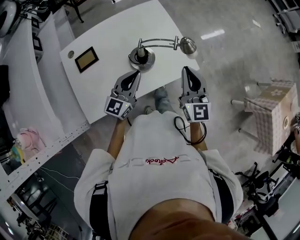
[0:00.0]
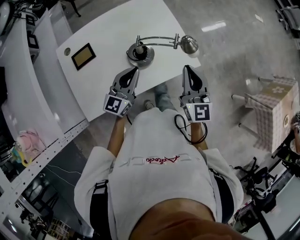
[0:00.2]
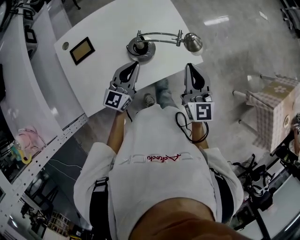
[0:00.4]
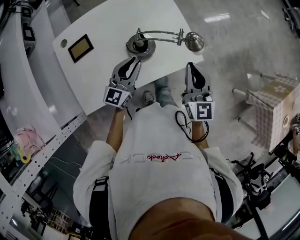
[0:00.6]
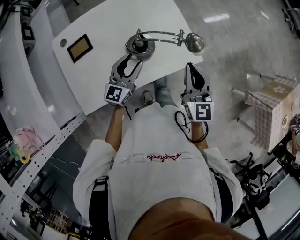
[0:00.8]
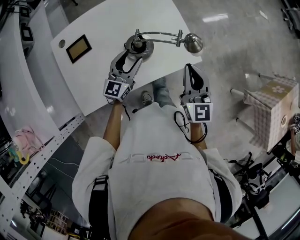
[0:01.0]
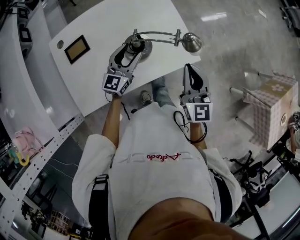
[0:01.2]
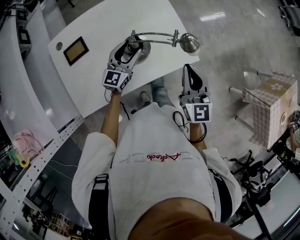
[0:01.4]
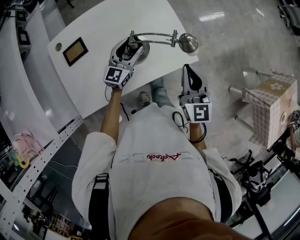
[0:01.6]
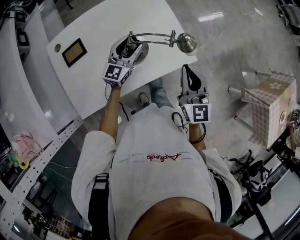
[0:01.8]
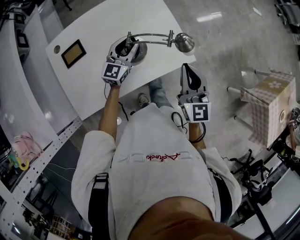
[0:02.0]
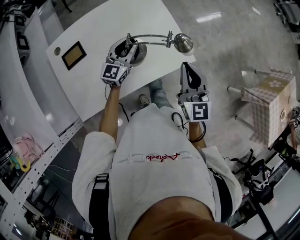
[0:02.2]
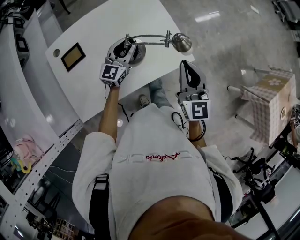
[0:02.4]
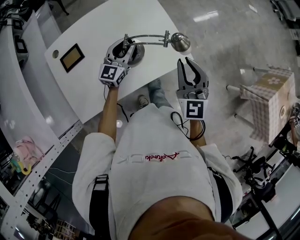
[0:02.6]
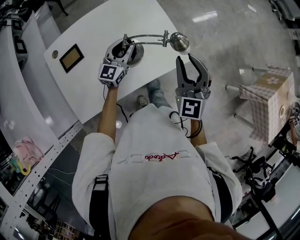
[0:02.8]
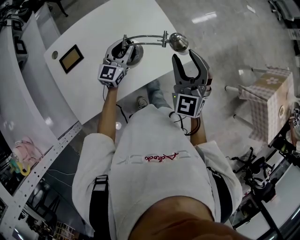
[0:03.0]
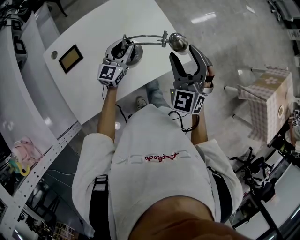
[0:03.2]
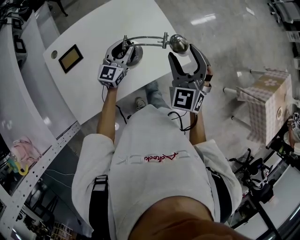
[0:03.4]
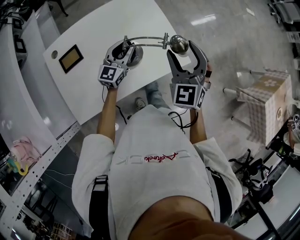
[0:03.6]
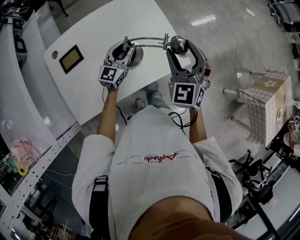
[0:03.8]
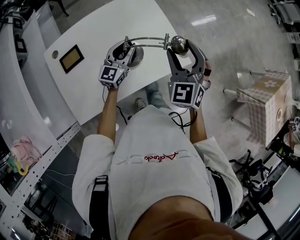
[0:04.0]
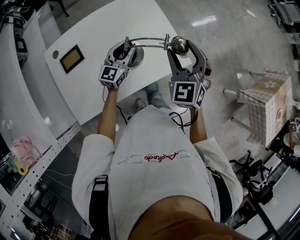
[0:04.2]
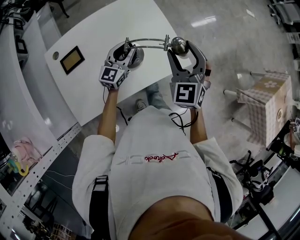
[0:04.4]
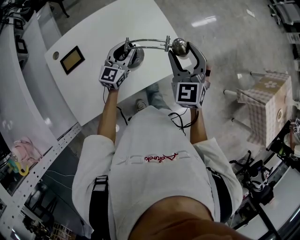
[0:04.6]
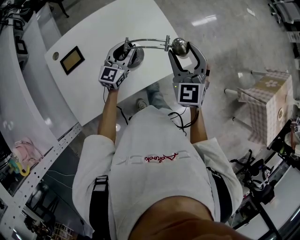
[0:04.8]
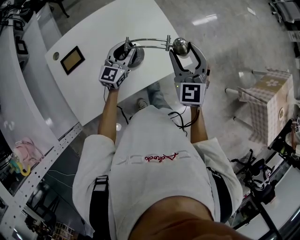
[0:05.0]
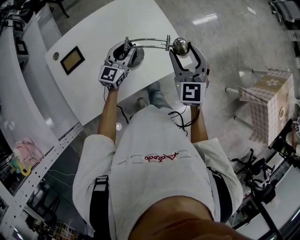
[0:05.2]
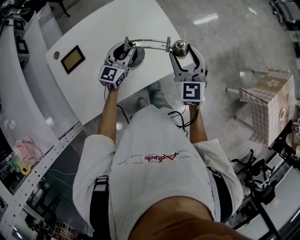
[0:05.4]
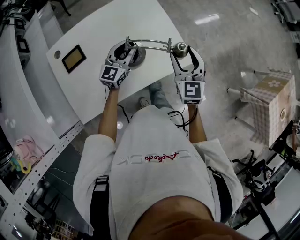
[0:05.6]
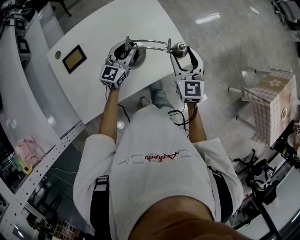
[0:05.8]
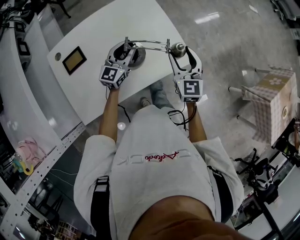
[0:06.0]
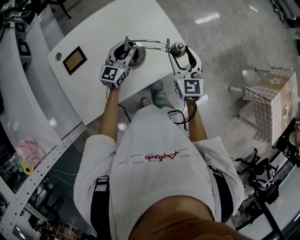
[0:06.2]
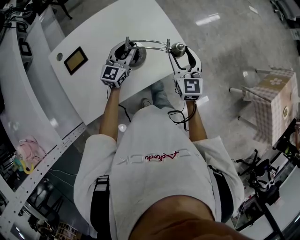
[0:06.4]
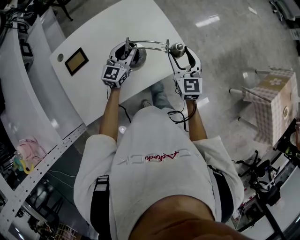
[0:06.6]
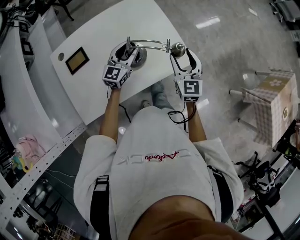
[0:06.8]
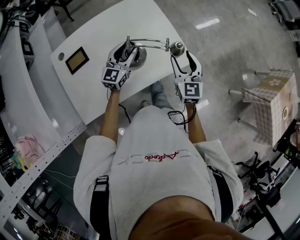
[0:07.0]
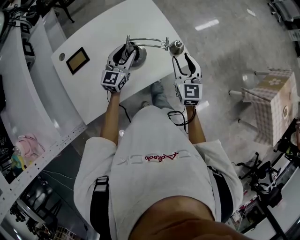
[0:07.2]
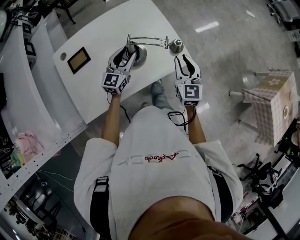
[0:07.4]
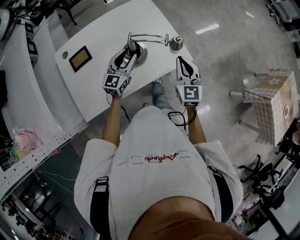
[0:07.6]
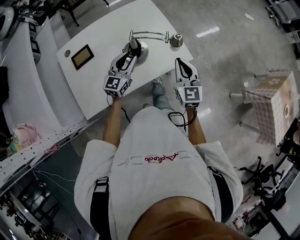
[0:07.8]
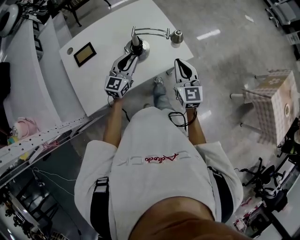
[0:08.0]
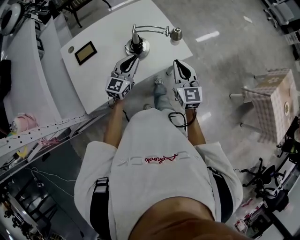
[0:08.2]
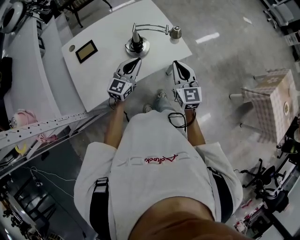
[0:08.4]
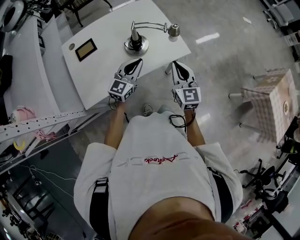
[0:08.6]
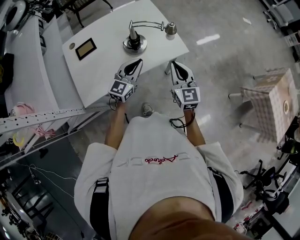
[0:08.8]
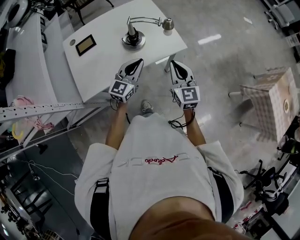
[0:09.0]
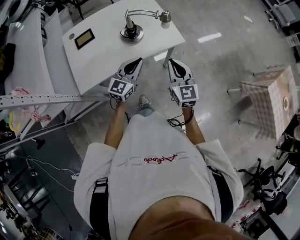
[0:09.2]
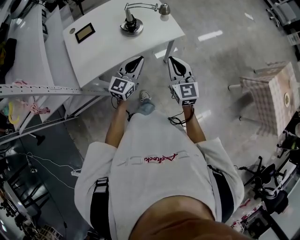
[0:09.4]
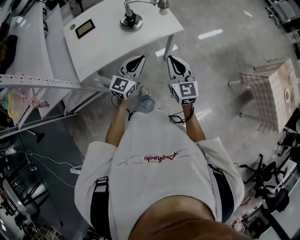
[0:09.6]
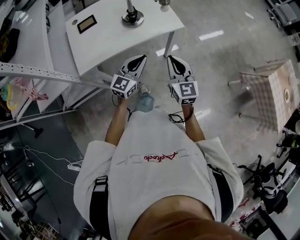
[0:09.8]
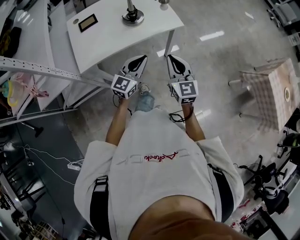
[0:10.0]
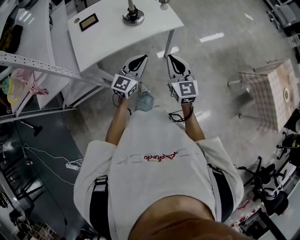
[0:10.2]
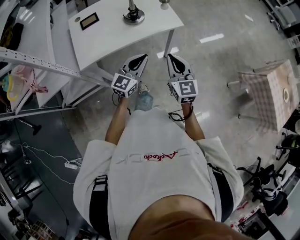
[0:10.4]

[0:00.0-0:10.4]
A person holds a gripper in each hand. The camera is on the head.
0:00.0 to 0:01.4: The left gripper moves forward and downward, some 10 cm, and opens its fingers.
0:01.4 to 0:03.0: The left gripper closes its fingers. The right gripper shifts by some 5 cm, changes its angle by some 30 degrees, and opens its fingers.
0:03.0 to 0:04.4: The grippers make only small movements.
0:04.4 to 0:06.0: The right gripper goes about 10 cm downward, and swivels approximately 30 degrees.
0:06.0 to 0:07.4: The right gripper closes up.
0:07.4 to 0:09.0: The left gripper travels backward and to the right by about 20 cm, and closes up. The right gripper moves backward, approximately 15 cm, and closes up.
0:09.0 to 0:10.4: Both grippers travel together backward, about 15 cm.

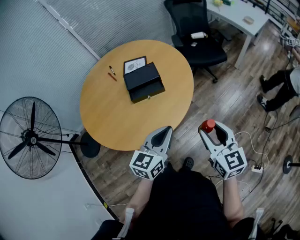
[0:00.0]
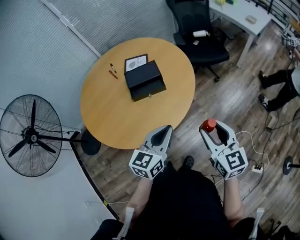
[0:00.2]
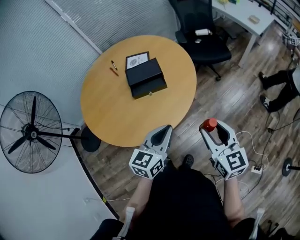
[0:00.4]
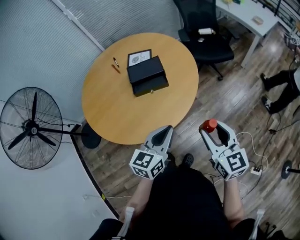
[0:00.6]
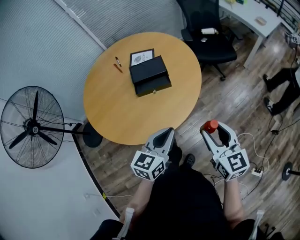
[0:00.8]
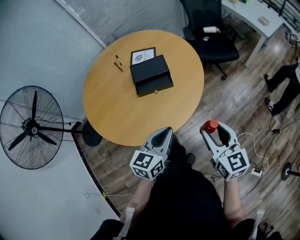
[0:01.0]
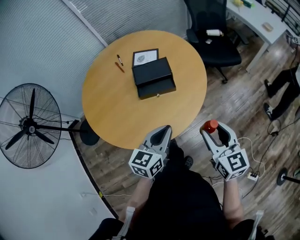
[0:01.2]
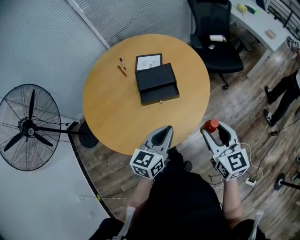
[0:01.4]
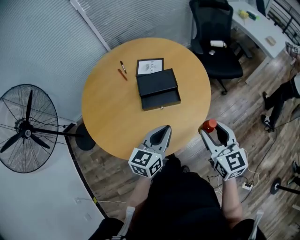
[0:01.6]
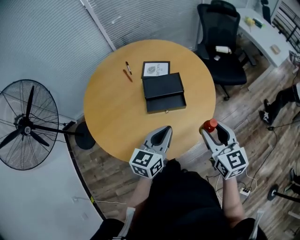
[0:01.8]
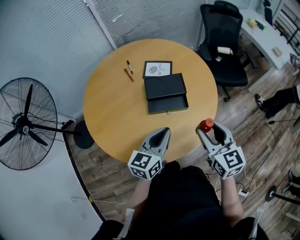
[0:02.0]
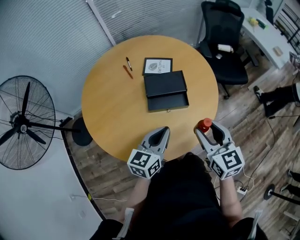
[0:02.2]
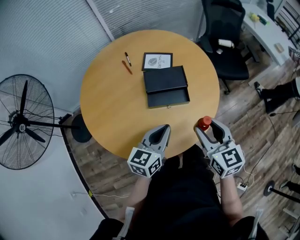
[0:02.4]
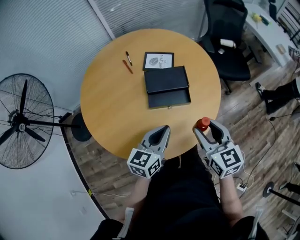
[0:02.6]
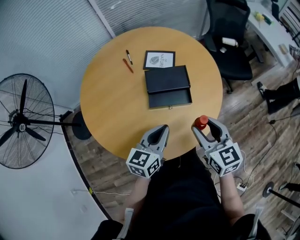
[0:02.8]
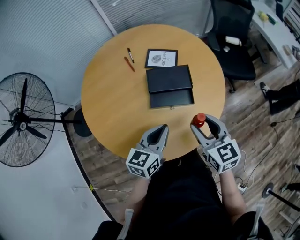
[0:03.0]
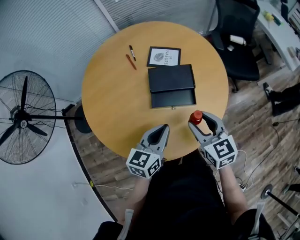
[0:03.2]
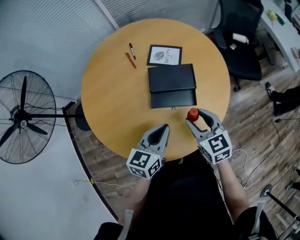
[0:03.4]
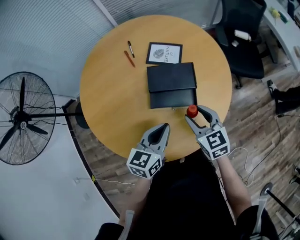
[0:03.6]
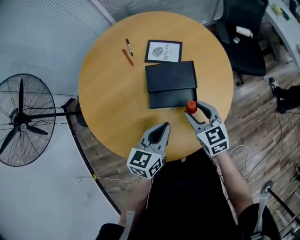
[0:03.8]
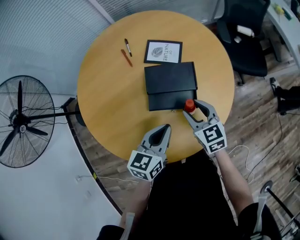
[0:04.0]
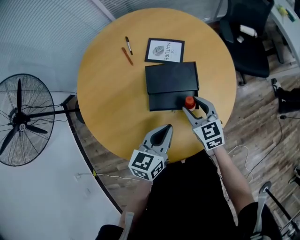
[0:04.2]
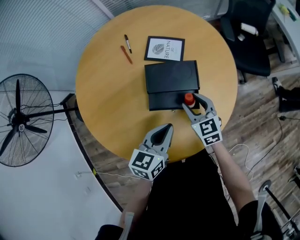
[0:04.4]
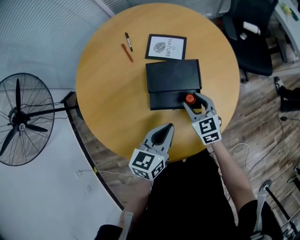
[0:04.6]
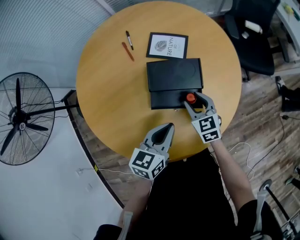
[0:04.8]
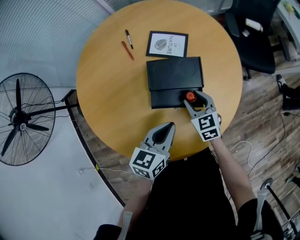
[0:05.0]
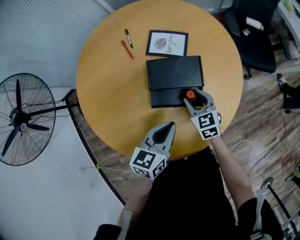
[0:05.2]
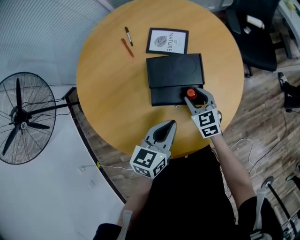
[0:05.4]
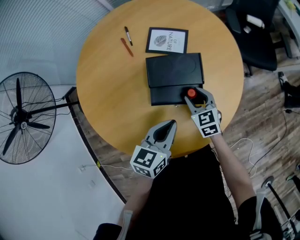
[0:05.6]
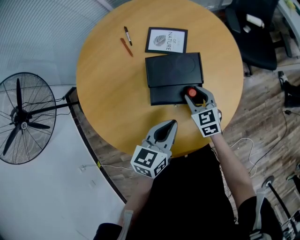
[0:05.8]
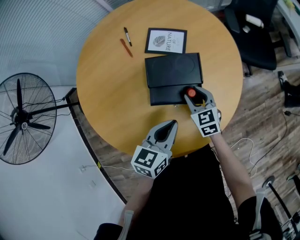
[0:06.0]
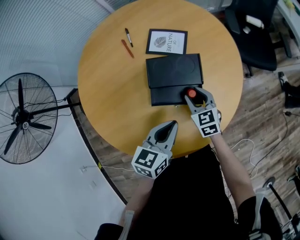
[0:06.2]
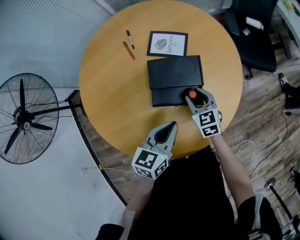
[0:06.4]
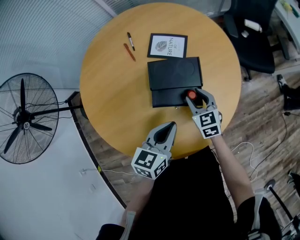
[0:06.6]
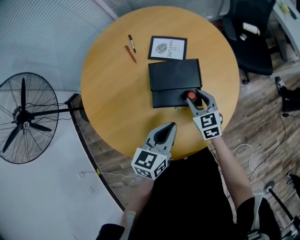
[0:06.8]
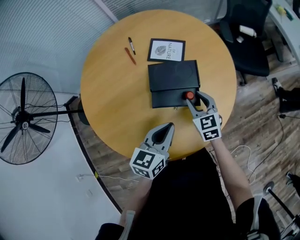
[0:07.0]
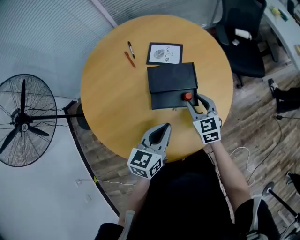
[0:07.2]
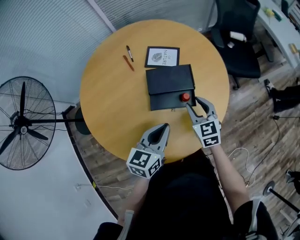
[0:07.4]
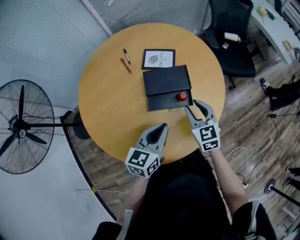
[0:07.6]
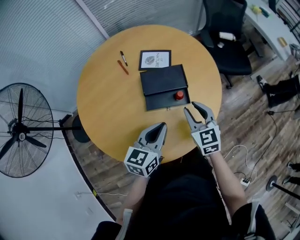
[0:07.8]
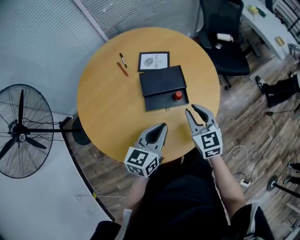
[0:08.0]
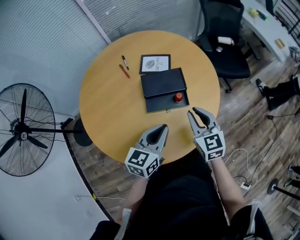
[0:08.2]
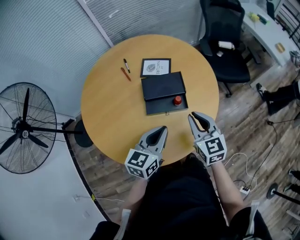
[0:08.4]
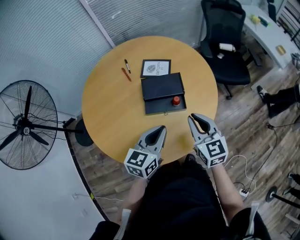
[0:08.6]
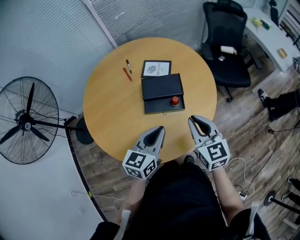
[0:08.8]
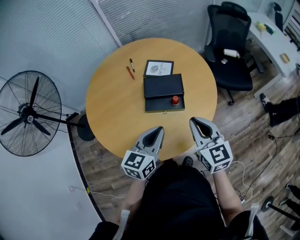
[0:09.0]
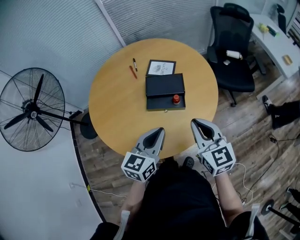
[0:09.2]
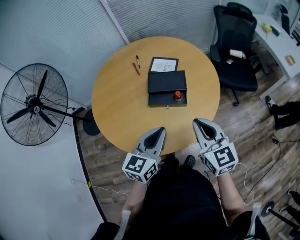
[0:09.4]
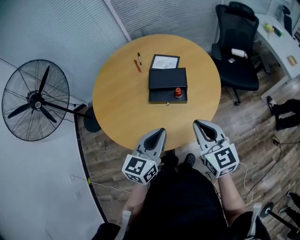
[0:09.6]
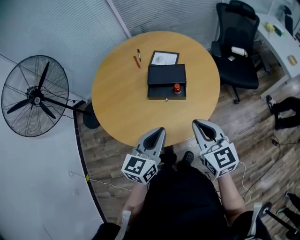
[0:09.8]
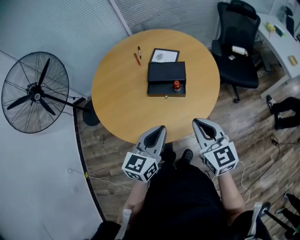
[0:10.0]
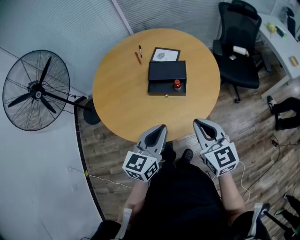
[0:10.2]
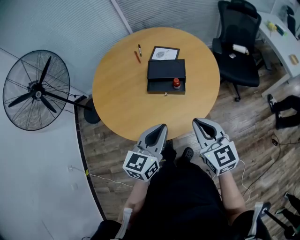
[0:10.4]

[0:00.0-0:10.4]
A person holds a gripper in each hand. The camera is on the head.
0:00.0 to 0:01.4: The grippers both shift forward and to the left by roughly 10 cm.
0:01.4 to 0:03.0: The two grippers go roughly 15 cm forward and to the left.
0:03.0 to 0:04.4: The right gripper is displaced downward and forward by roughly 20 cm. The left gripper is displaced forward and downward by roughly 10 cm.
0:04.4 to 0:06.0: There are only small adjustments of the grippers.
0:06.0 to 0:07.4: The left gripper moves approximately 5 cm. The right gripper is displaced upward by approximately 10 cm.
0:07.4 to 0:09.0: The left gripper shifts about 10 cm upward and backward. The right gripper is displaced upward and backward by roughly 20 cm, and closes its fingers.
0:09.0 to 0:10.4: Both grippers move backward, some 10 cm.

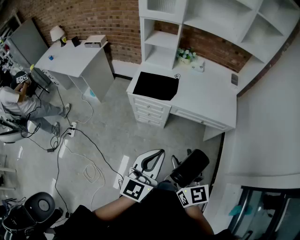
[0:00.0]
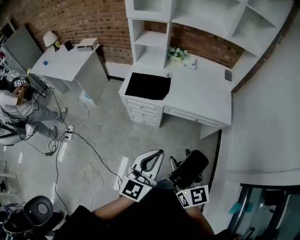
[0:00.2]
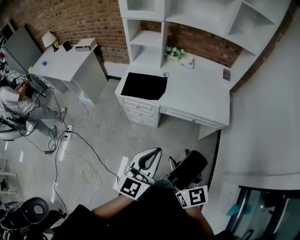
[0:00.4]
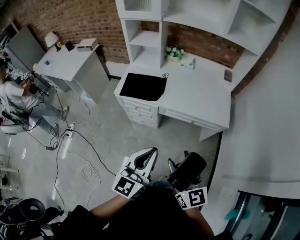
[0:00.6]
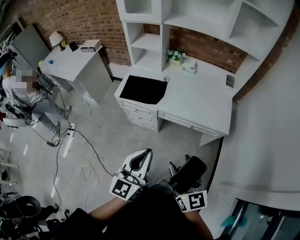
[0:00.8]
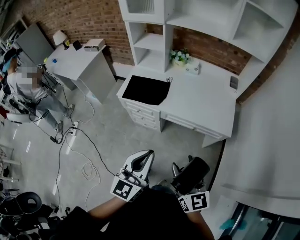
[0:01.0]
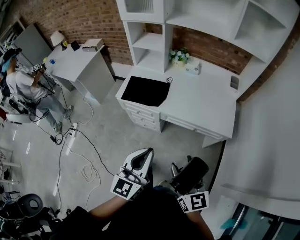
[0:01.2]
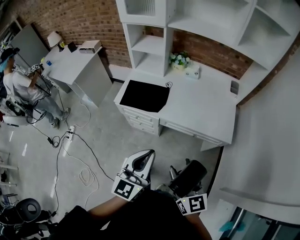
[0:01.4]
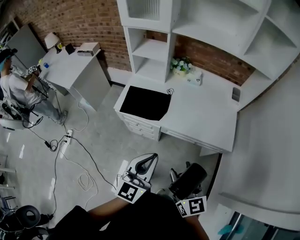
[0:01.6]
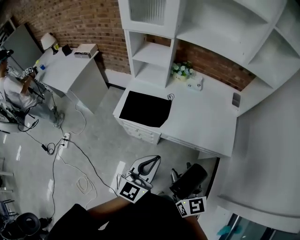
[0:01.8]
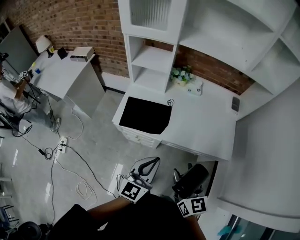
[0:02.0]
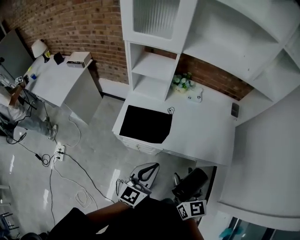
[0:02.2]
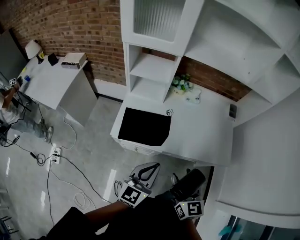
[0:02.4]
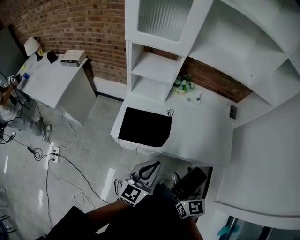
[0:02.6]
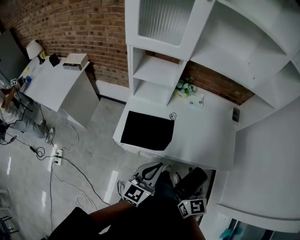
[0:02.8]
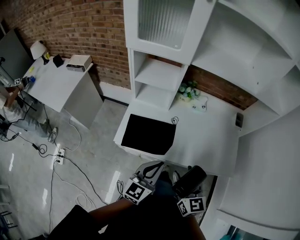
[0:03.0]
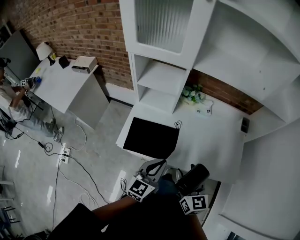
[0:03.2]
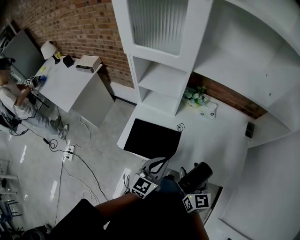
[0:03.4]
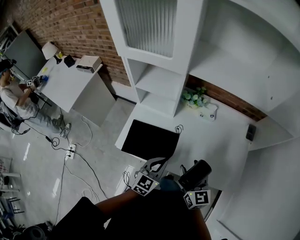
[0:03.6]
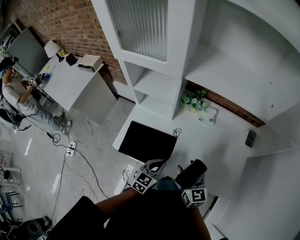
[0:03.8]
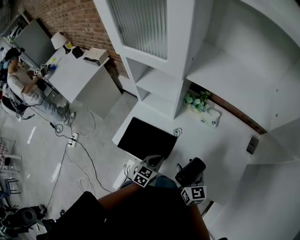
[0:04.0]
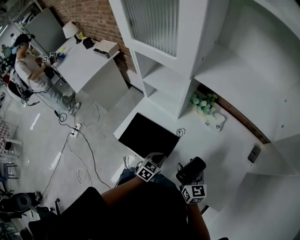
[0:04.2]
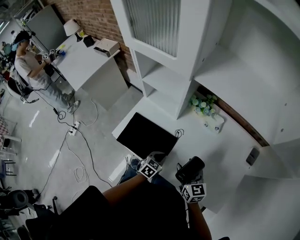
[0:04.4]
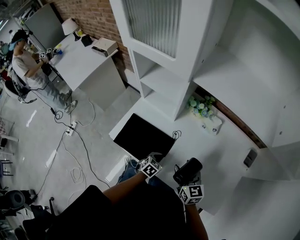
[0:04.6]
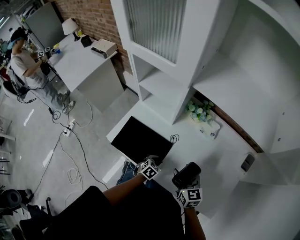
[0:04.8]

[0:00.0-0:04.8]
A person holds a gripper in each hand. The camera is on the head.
0:00.0 to 0:01.6: The two grippers go about 20 cm forward and to the right.
0:01.6 to 0:03.2: The left gripper heads forward, covering approximately 25 cm; the right gripper is displaced forward and to the left by roughly 25 cm.
0:03.2 to 0:04.8: The left gripper is displaced downward and forward by approximately 35 cm, points its fingers some 50 degrees further downward, and opens. Meanwhile the right gripper goes some 25 cm forward, downward and to the right, and turns by about 30 degrees.
